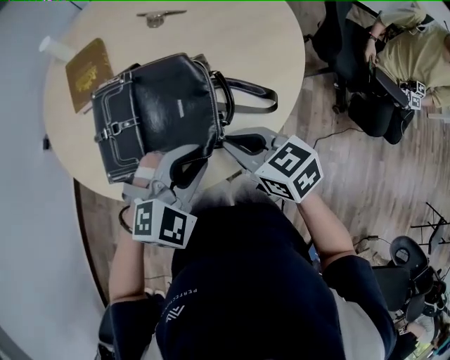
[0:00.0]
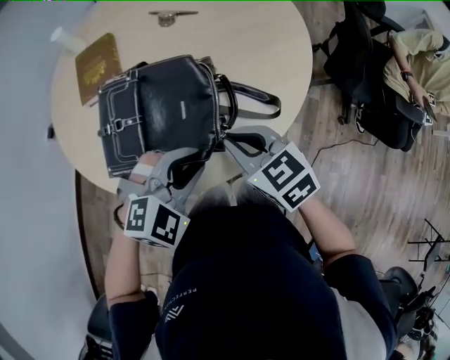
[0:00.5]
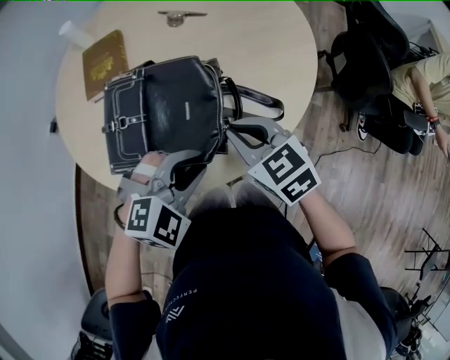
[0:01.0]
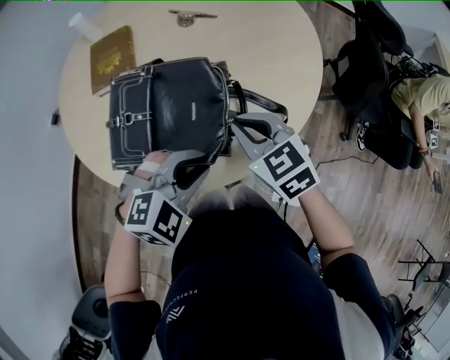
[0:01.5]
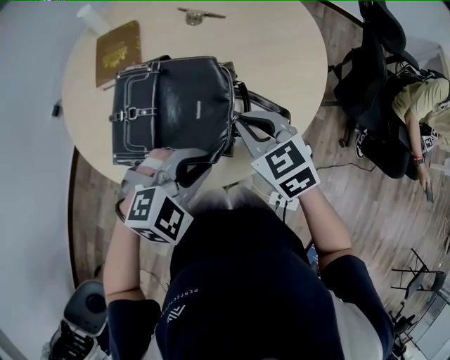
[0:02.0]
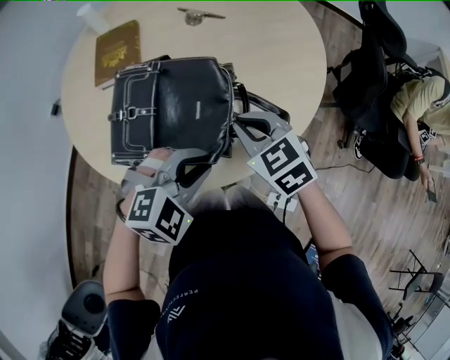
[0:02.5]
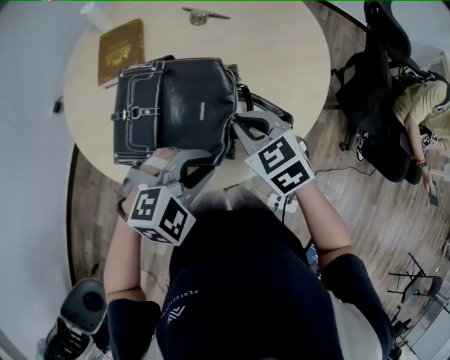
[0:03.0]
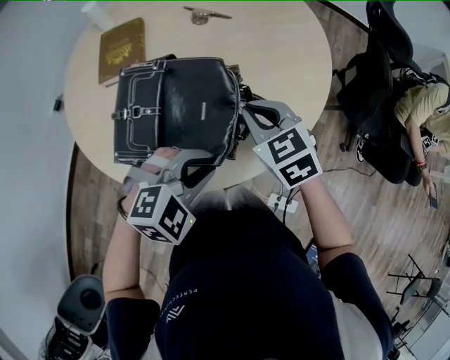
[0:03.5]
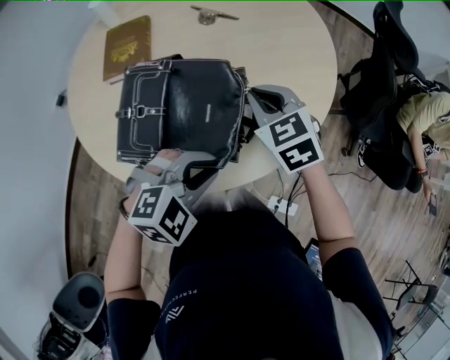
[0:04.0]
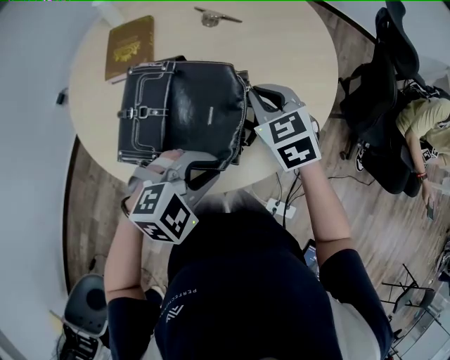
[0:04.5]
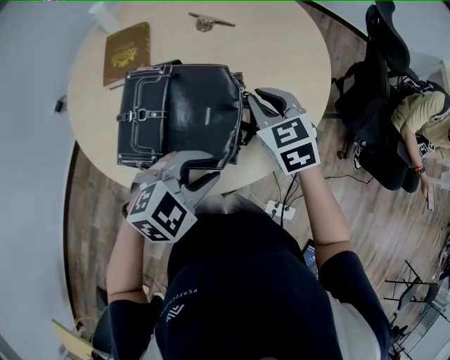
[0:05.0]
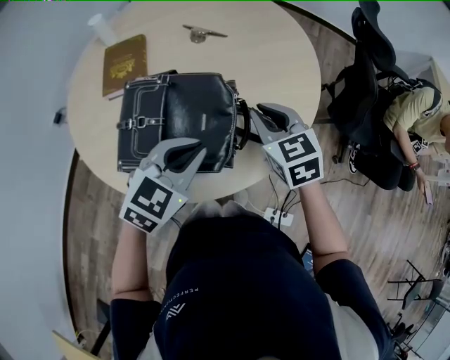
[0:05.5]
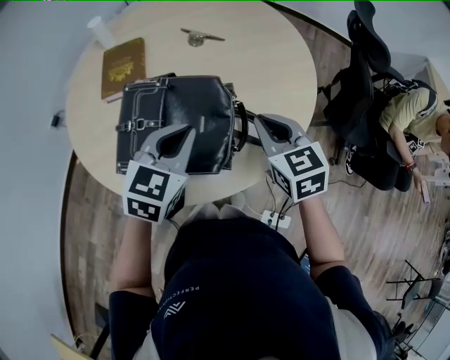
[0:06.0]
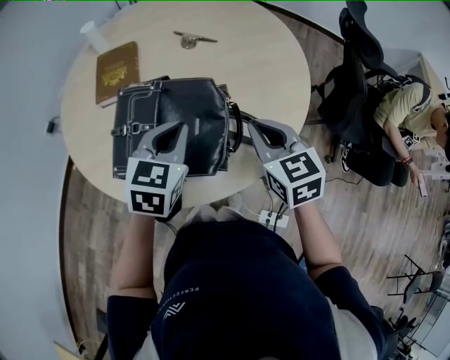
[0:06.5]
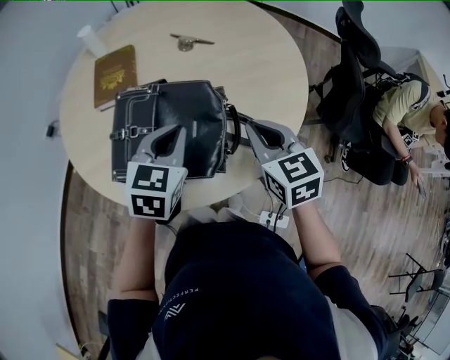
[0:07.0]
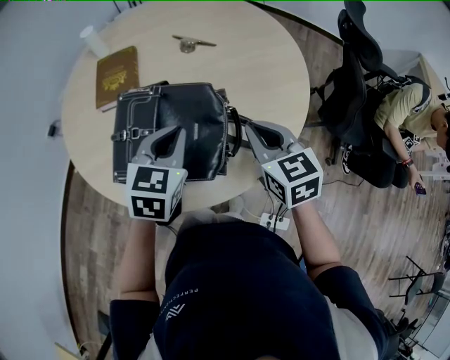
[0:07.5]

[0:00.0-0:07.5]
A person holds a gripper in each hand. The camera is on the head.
0:00.0 to 0:02.0: The right gripper shifts some 5 cm forward, and rotates some 20 degrees.
0:02.0 to 0:04.0: The right gripper is displaced forward by about 10 cm.
0:04.0 to 0:05.5: The left gripper moves approximately 5 cm, and rotates approximately 30 degrees.
0:05.5 to 0:07.5: The left gripper heads forward, covering some 5 cm, and changes its angle by roughly 20 degrees.

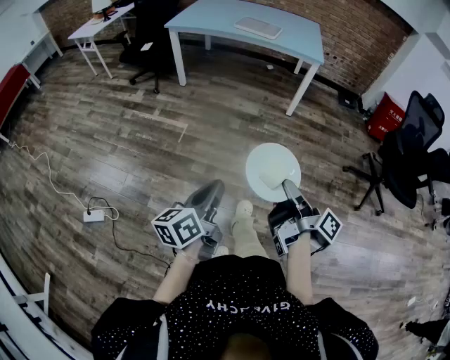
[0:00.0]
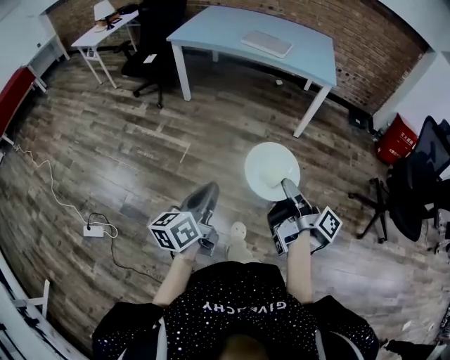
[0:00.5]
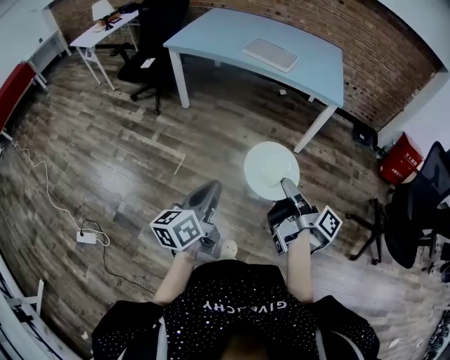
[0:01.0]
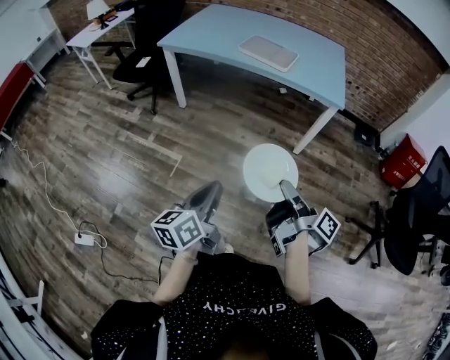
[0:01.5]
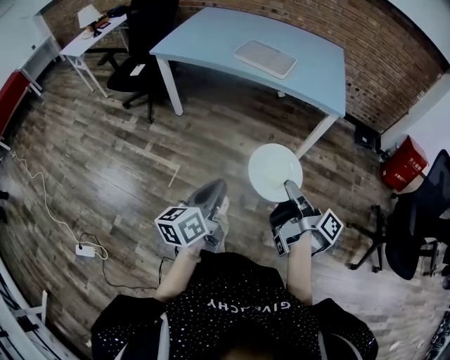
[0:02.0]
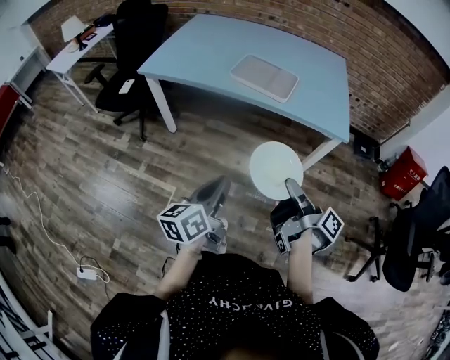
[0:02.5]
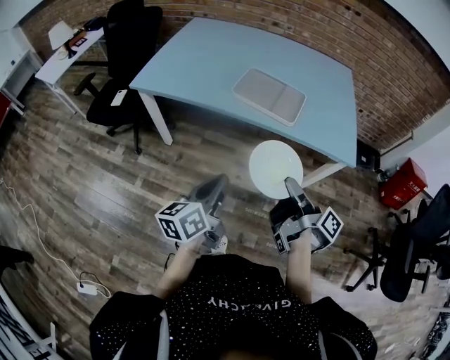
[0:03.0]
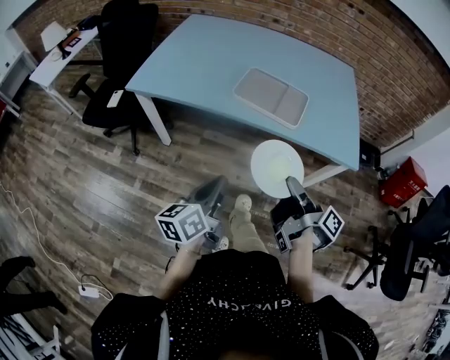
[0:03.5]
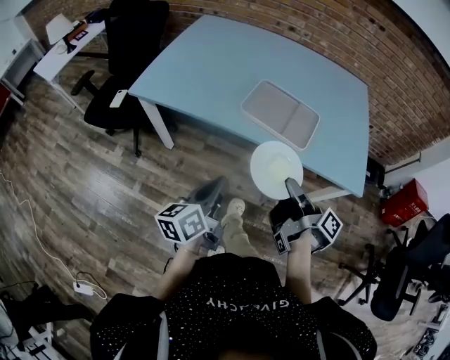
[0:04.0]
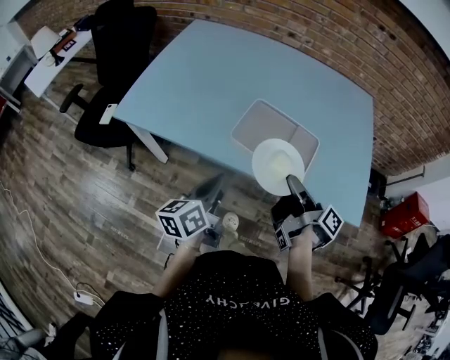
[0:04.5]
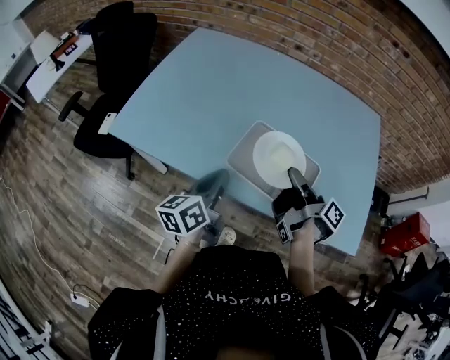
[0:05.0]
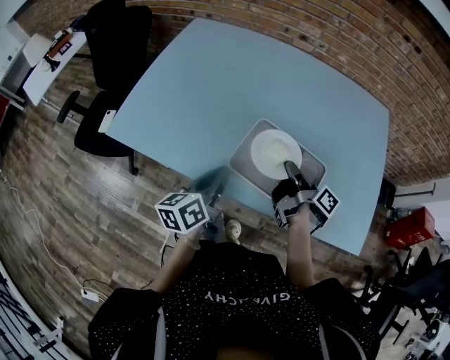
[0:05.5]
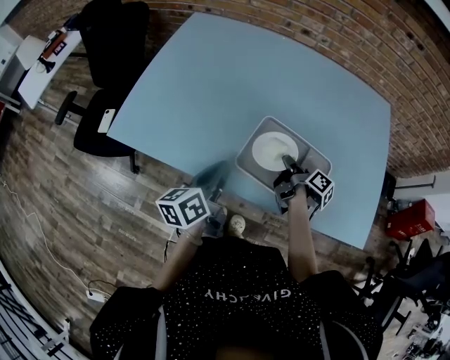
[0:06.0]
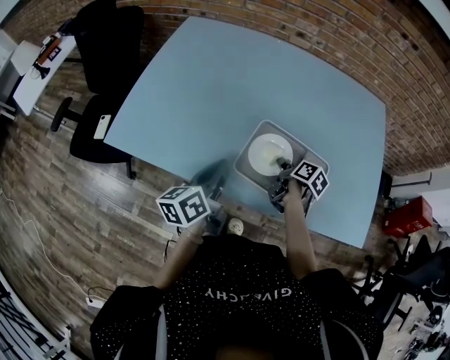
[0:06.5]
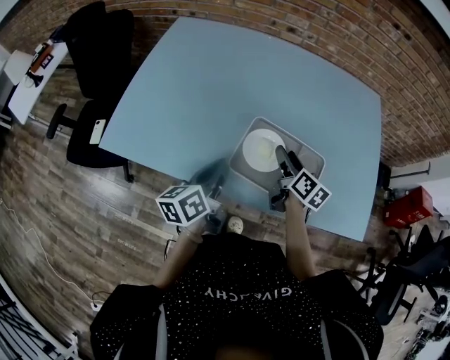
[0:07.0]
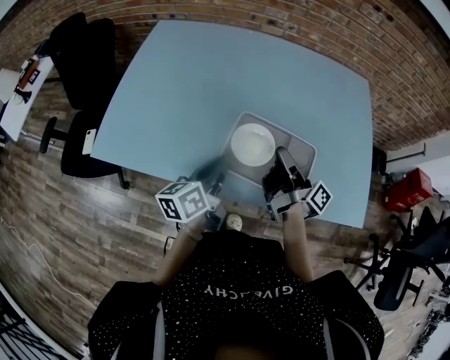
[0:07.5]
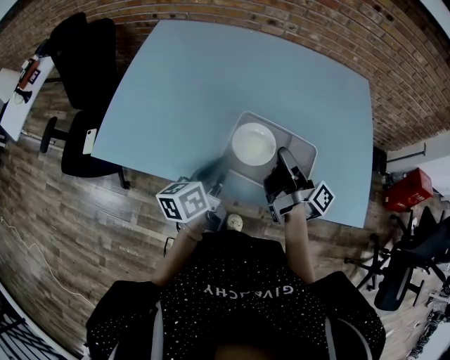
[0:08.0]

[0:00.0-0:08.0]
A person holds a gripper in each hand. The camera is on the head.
0:00.0 to 0:02.0: The left gripper moves approximately 50 cm.
0:02.0 to 0:04.0: The left gripper changes place by some 50 cm.
0:04.0 to 0:06.0: The left gripper shifts by approximately 35 cm.
0:06.0 to 0:08.0: The left gripper shifts by some 5 cm.

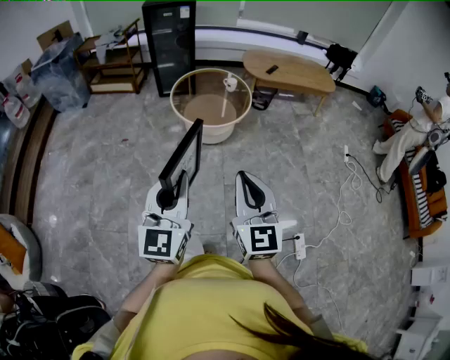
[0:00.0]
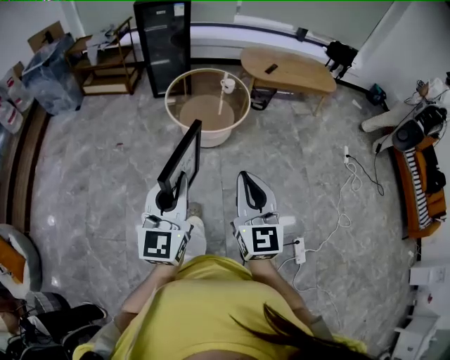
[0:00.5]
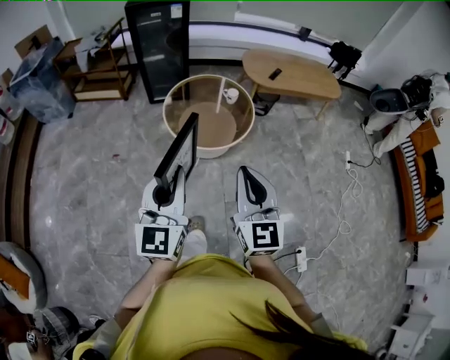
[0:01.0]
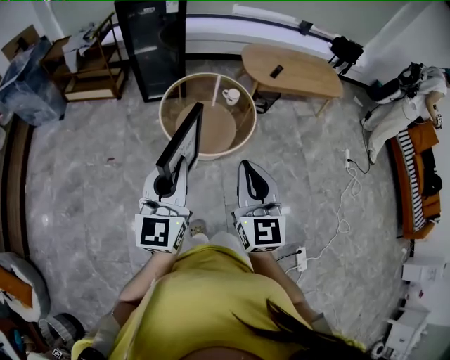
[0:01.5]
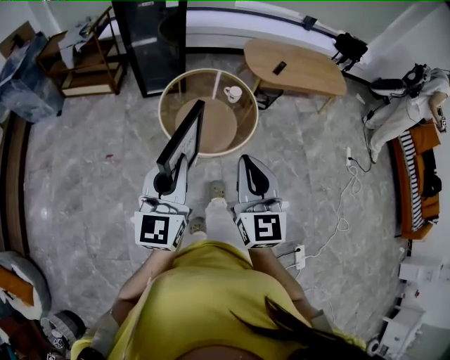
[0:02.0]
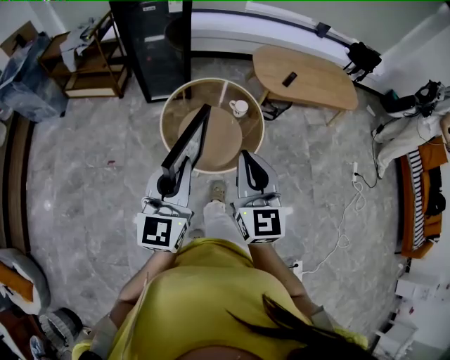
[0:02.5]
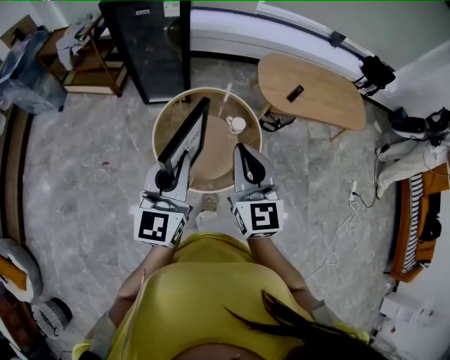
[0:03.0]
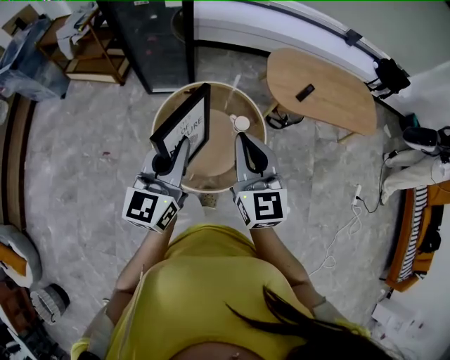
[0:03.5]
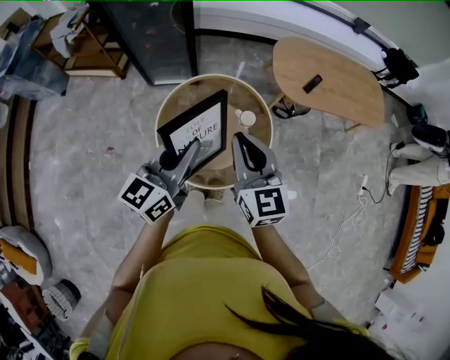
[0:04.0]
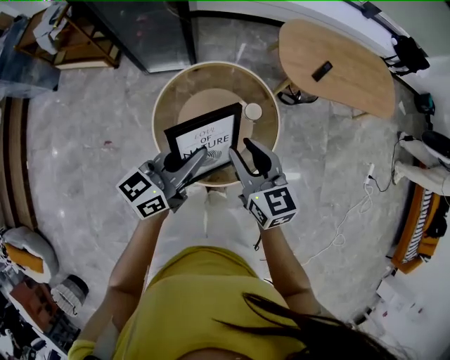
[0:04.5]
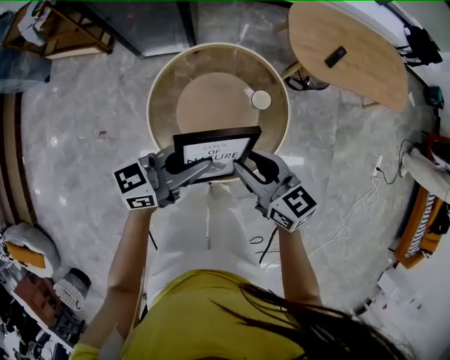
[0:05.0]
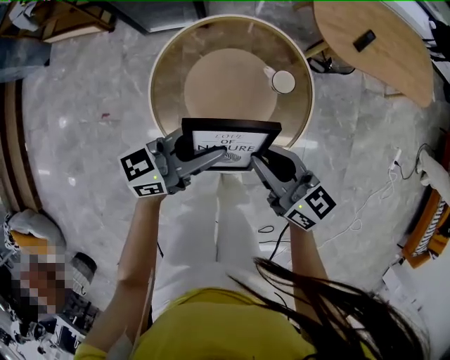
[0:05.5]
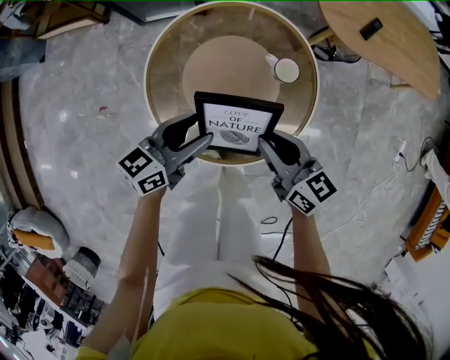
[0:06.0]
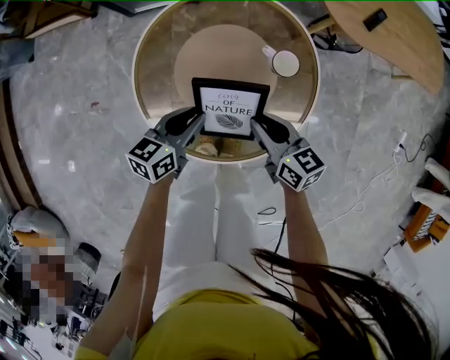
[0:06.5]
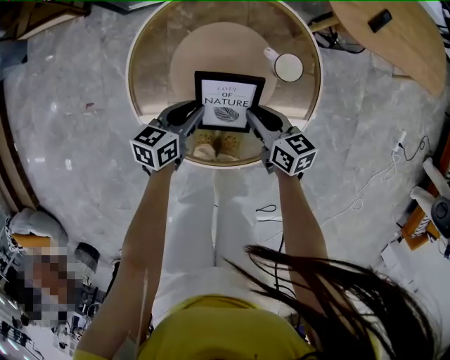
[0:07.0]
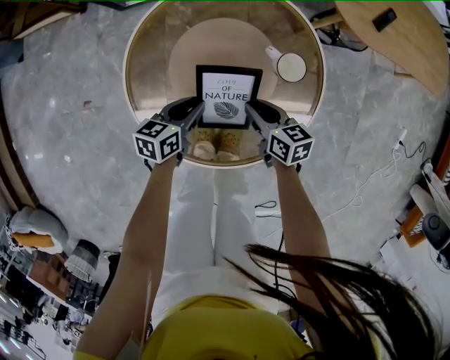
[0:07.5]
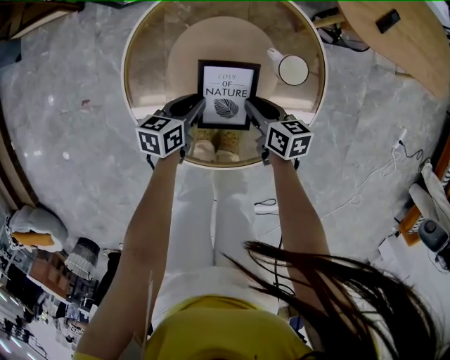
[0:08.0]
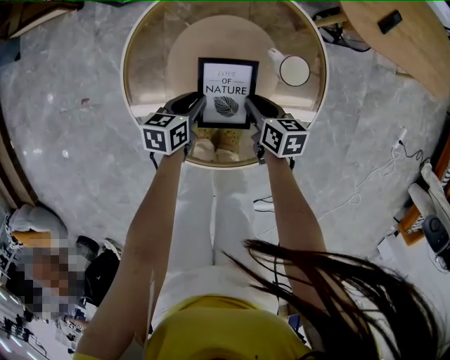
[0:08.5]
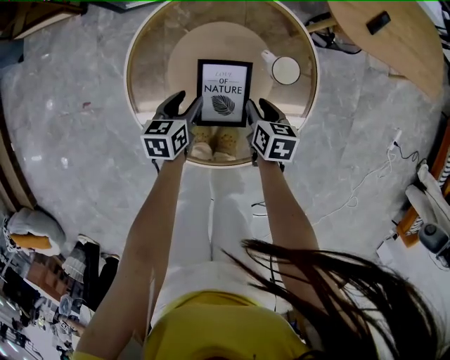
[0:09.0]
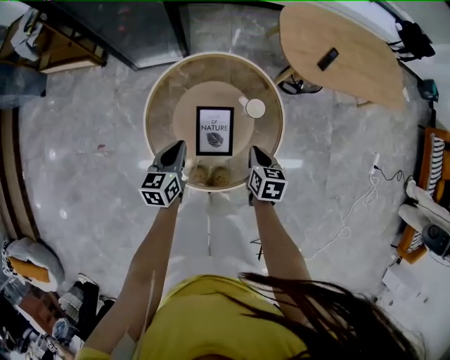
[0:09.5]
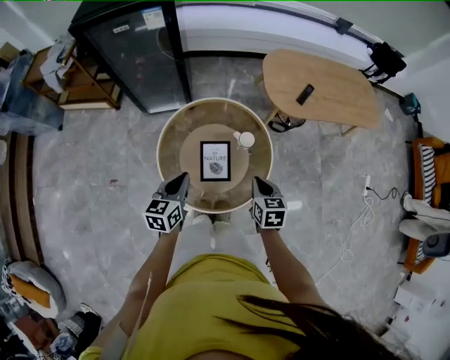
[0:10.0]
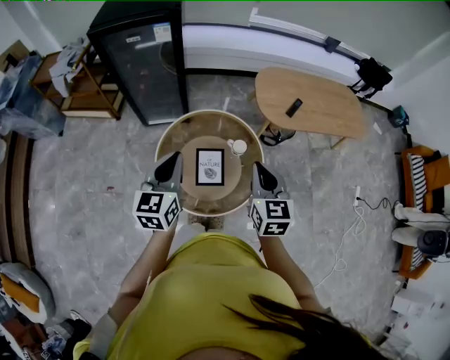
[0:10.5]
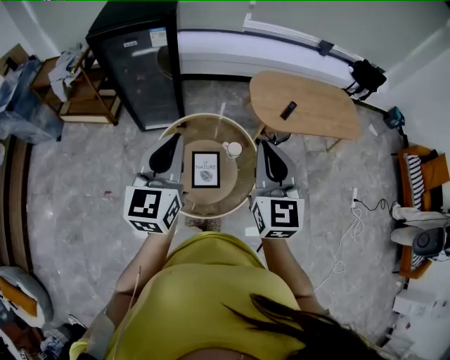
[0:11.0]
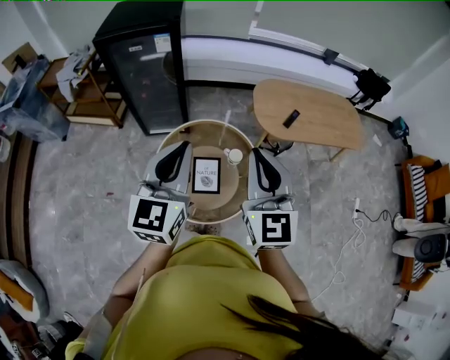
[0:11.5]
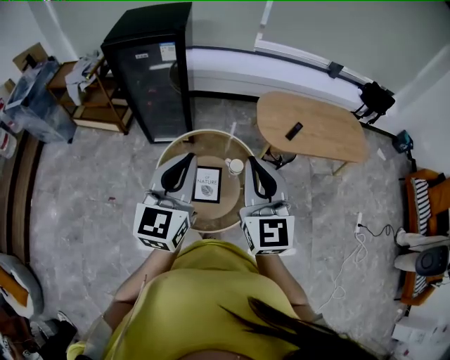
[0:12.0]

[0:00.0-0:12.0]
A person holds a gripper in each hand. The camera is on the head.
0:00.0 to 0:02.0: The pair of grippers is taken forward, about 40 cm.
0:02.0 to 0:04.0: Both grippers move forward, some 35 cm. The left gripper rotates about 20 degrees, while the right gripper swivels approximately 20 degrees.
0:04.0 to 0:06.0: The grippers both shift downward by about 30 cm. The left gripper changes its angle by some 30 degrees, and opens up. The right gripper turns by approximately 30 degrees.
0:06.0 to 0:08.0: The grippers both shift downward by approximately 25 cm. The right gripper turns by some 30 degrees, while the left gripper turns by about 30 degrees, and closes.
0:08.0 to 0:10.0: Both grippers travel together upward, some 35 cm. The left gripper turns by approximately 30 degrees, and closes its fingers. Meanwhile the right gripper turns by roughly 30 degrees.
0:10.0 to 0:12.0: The two grippers go approximately 35 cm upward. The right gripper points its fingers roughly 50 degrees further upward, while the left gripper changes its angle by approximately 30 degrees.
